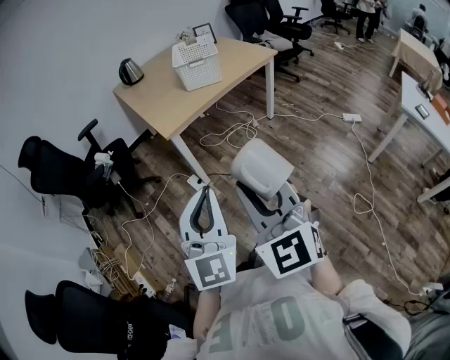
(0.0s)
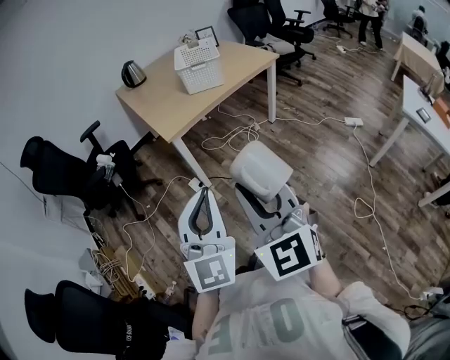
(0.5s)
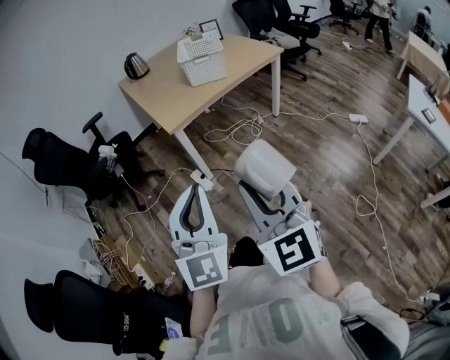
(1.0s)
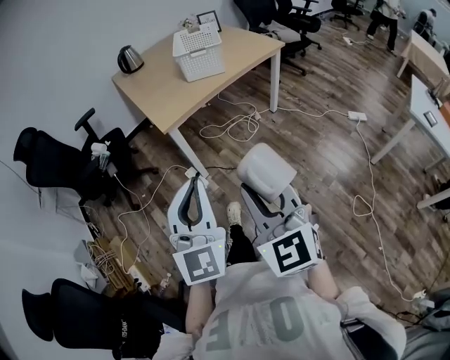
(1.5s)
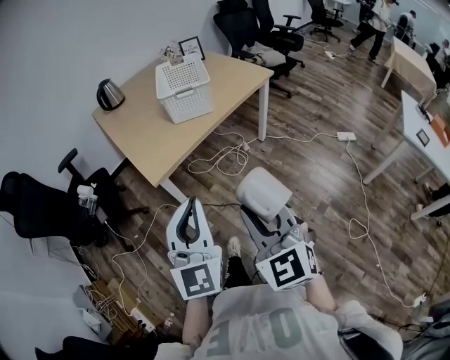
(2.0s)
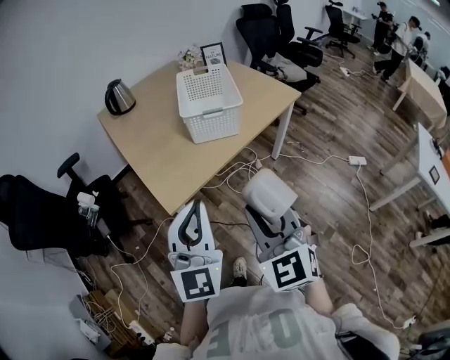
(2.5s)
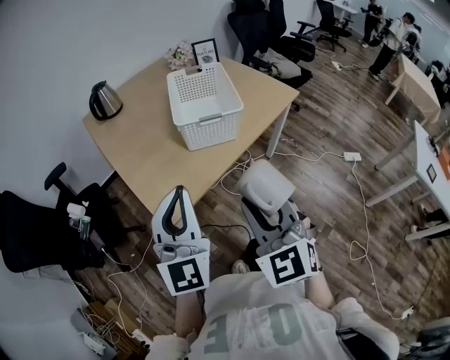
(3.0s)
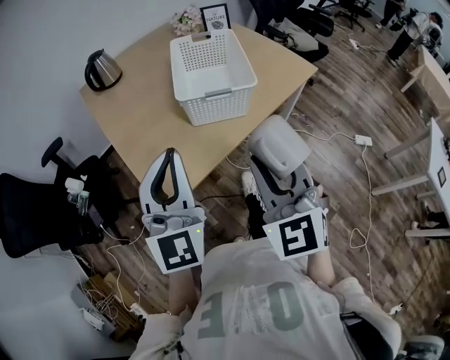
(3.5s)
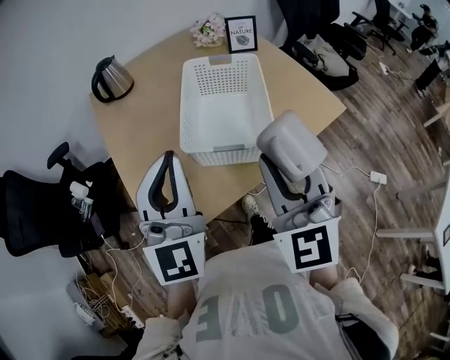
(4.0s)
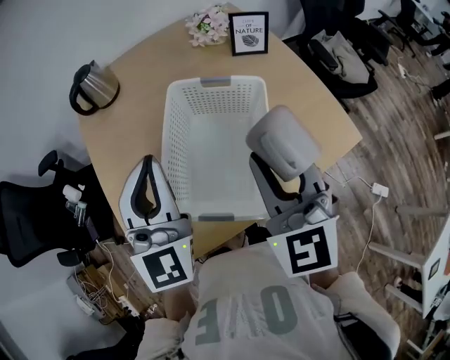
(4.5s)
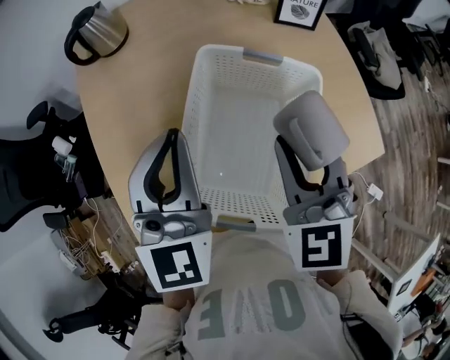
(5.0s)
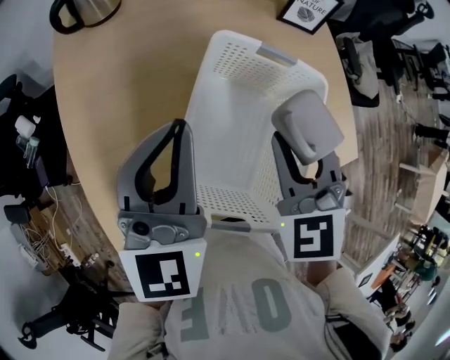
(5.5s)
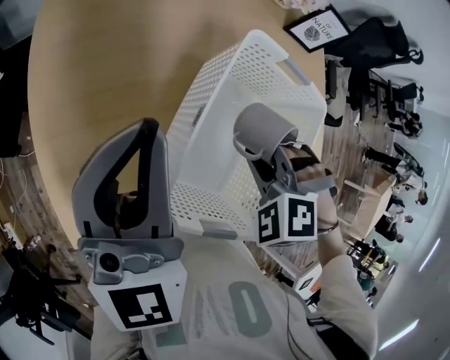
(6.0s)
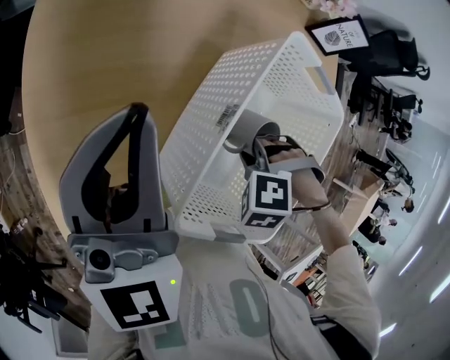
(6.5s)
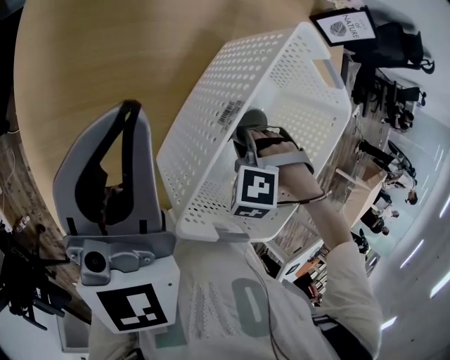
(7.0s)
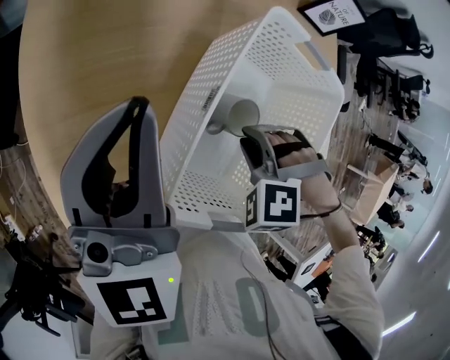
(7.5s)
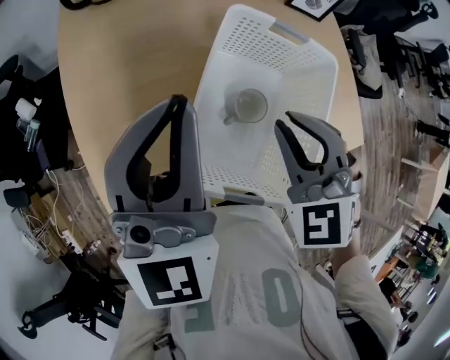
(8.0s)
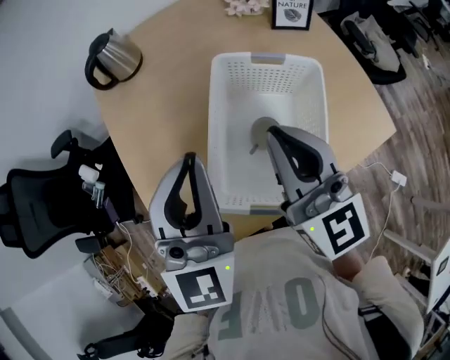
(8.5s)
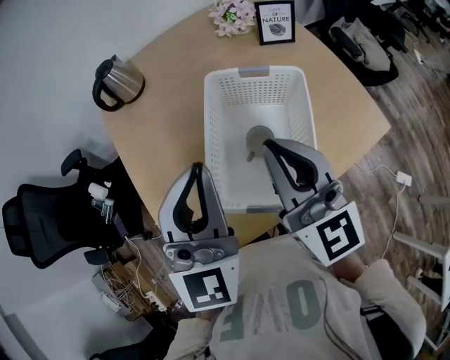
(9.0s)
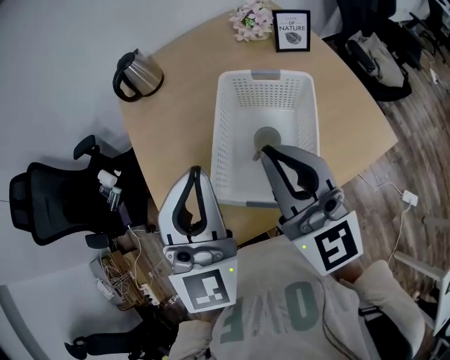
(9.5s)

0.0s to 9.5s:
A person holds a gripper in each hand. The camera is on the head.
0.0s to 2.0s: Both grippers travel together forward, some 20 cm.
2.0s to 4.0s: The pair of grippers is taken forward, some 50 cm.
4.0s to 5.5s: Both grippers travel together forward, roughly 30 cm. The right gripper points its fingers roughly 30 degrees further downward; the left gripper rotates approximately 20 degrees.
5.5s to 7.5s: The right gripper heads downward, covering some 15 cm, and rolls counterclockwise, seen from behind, by approximately 50 degrees; the left gripper shifts by approximately 10 cm.
7.5s to 9.5s: The left gripper heads upward, backward and to the right, covering approximately 20 cm, and swivels approximately 20 degrees; the right gripper heads upward, covering about 30 cm, and tilts its fingers approximately 80 degrees upward.

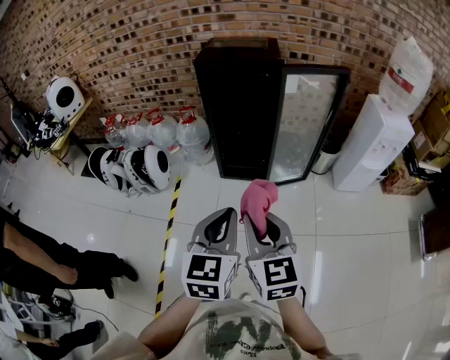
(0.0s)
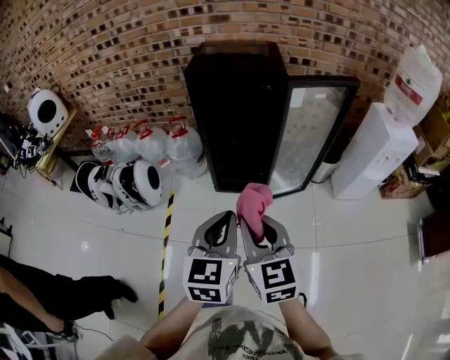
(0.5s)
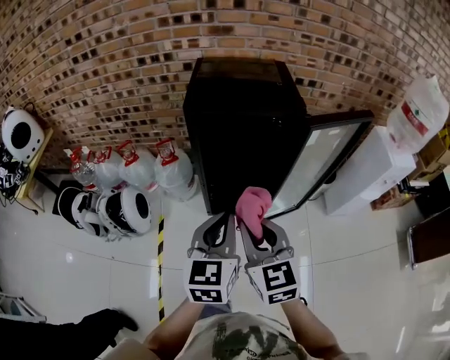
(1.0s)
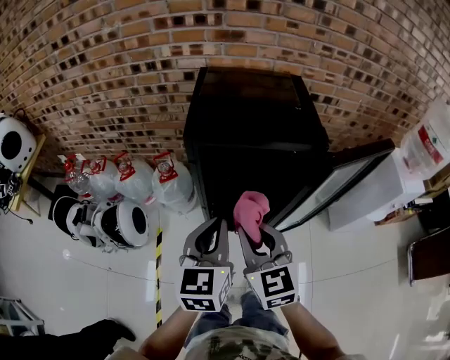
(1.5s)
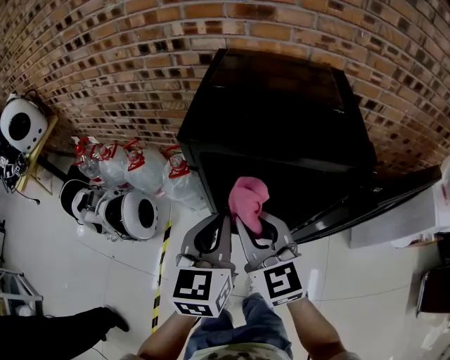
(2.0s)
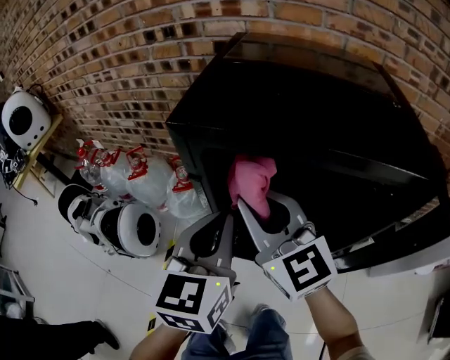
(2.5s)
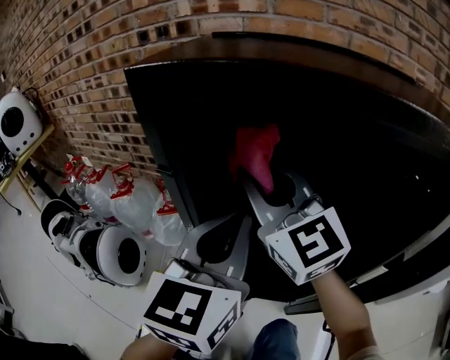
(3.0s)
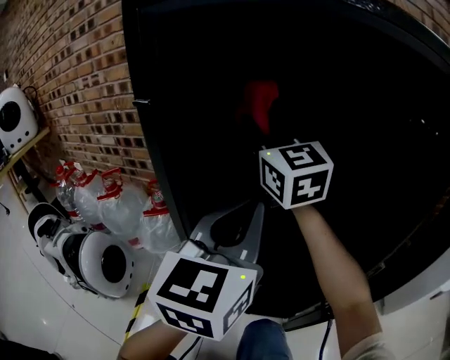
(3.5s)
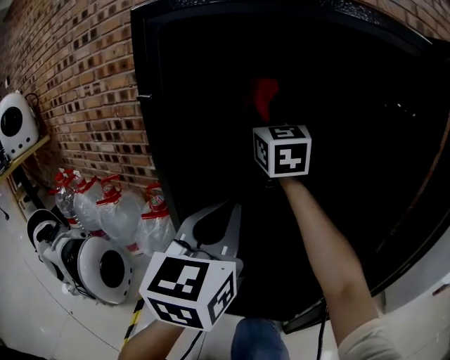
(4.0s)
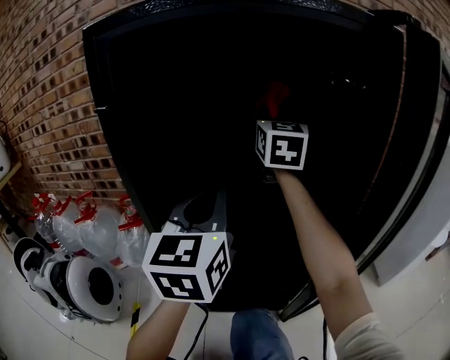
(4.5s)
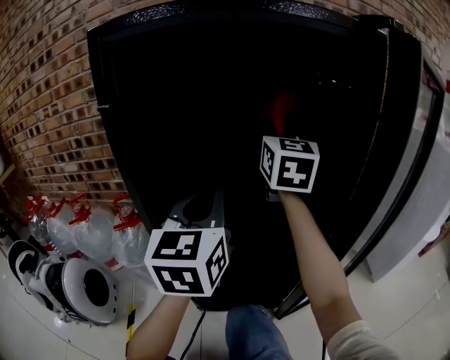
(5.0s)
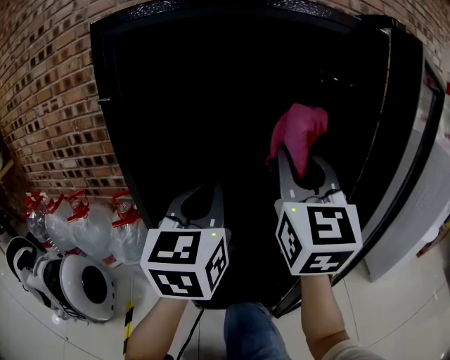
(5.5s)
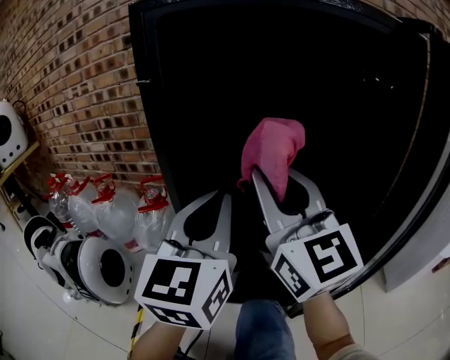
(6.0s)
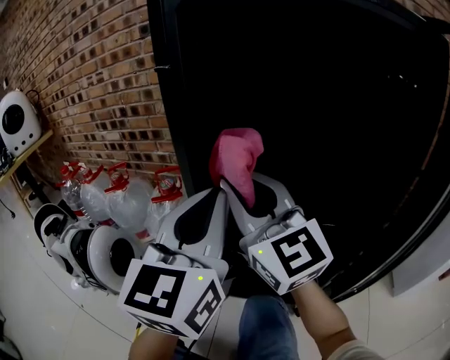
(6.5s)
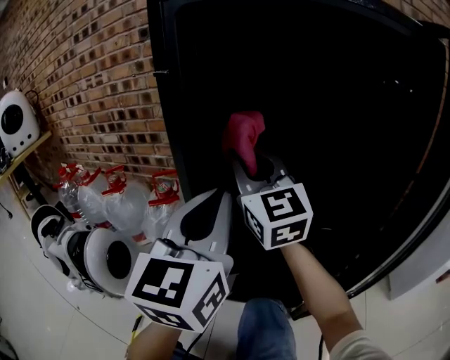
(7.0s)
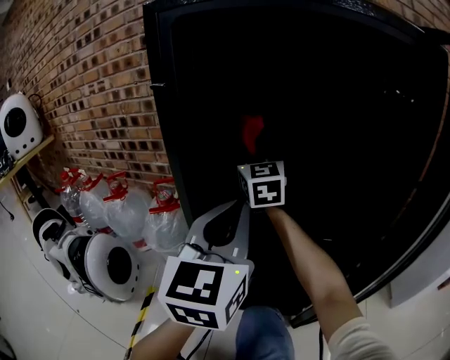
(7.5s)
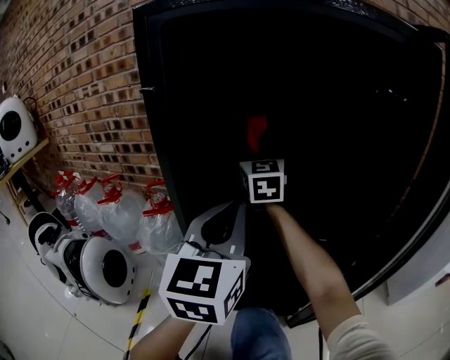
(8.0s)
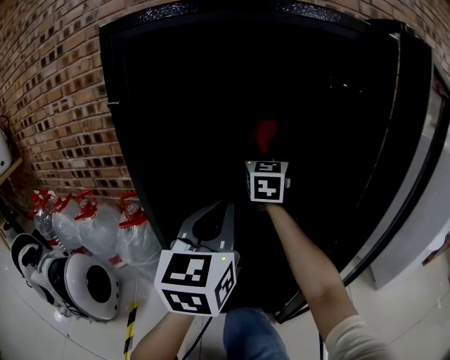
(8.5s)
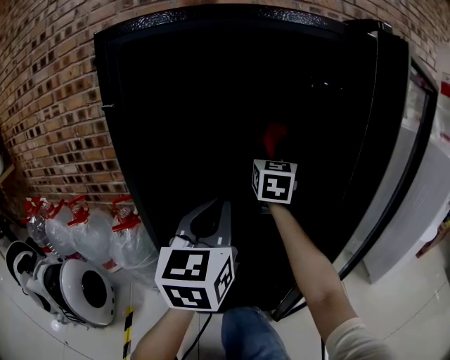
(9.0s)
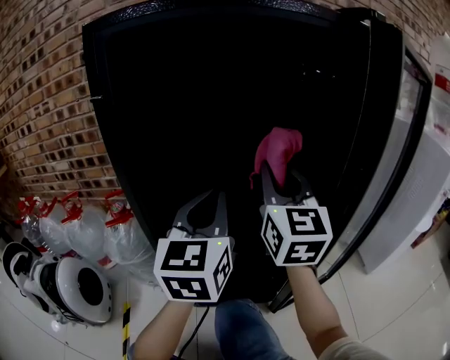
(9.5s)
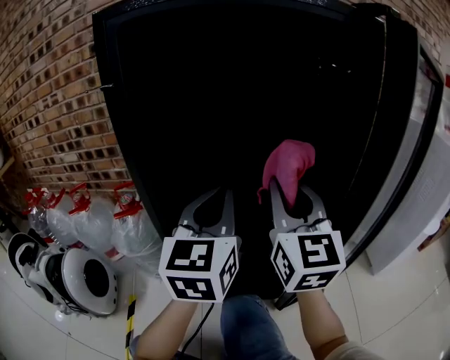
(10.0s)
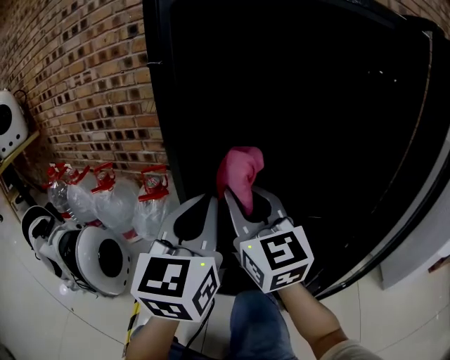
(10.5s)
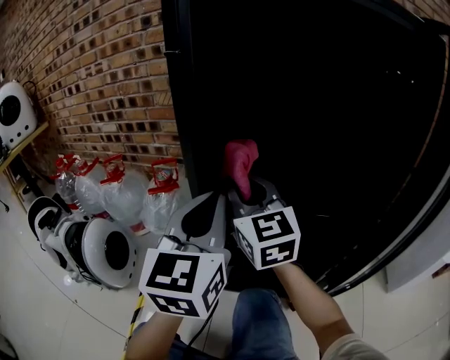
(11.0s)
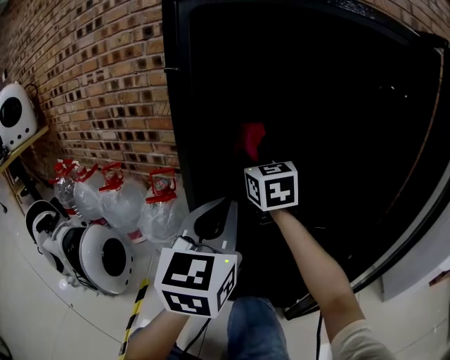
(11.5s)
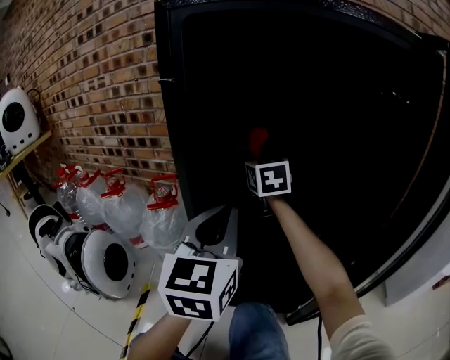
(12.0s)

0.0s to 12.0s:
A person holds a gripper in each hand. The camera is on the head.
0.0s to 2.0s: The two grippers travel together, forward, about 50 cm.
2.0s to 4.0s: The left gripper moves downward and forward, some 20 cm, and turns by roughly 20 degrees. Meanwhile the right gripper moves forward, roughly 30 cm, and changes its angle by approximately 30 degrees.
4.0s to 6.0s: The right gripper moves backward, some 25 cm.
6.0s to 8.0s: The right gripper travels forward by about 25 cm.
8.0s to 10.0s: The right gripper travels backward and to the right by approximately 25 cm.
10.0s to 12.0s: The right gripper heads forward and to the left, covering approximately 25 cm, and swivels about 30 degrees. Meanwhile the left gripper travels to the left by about 5 cm.

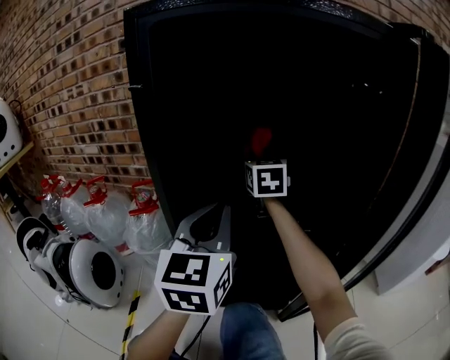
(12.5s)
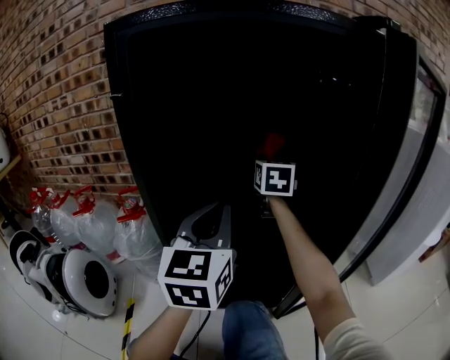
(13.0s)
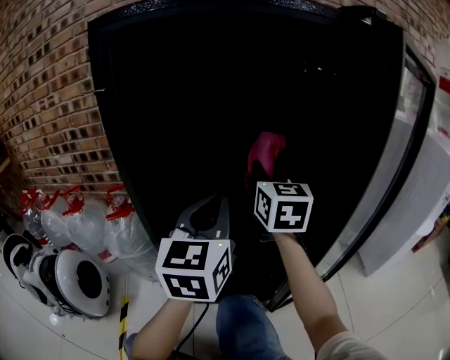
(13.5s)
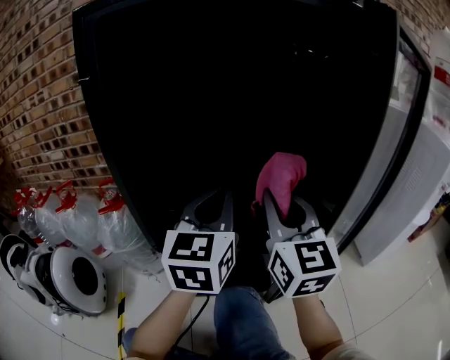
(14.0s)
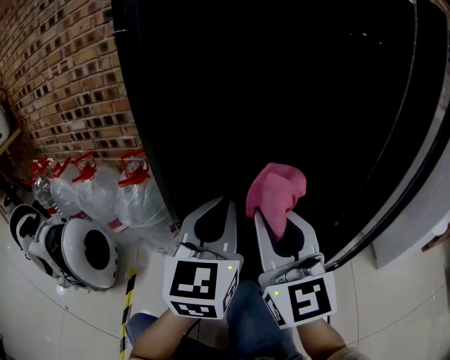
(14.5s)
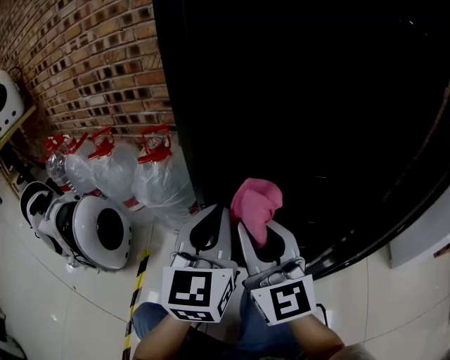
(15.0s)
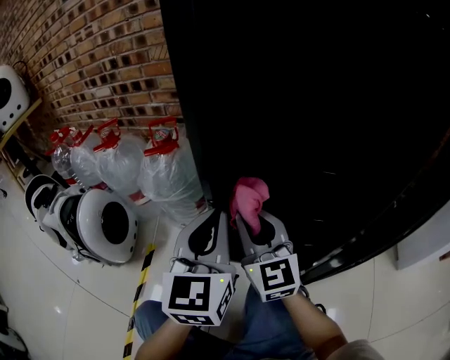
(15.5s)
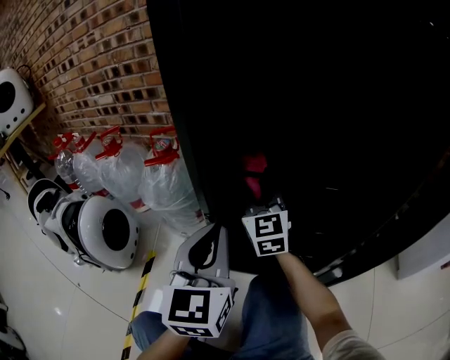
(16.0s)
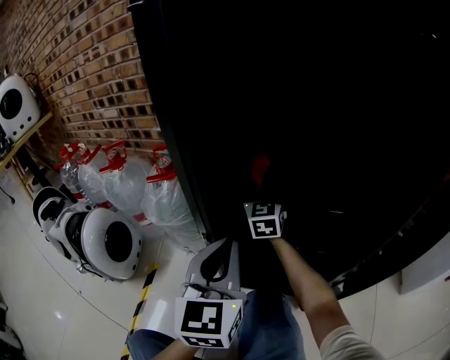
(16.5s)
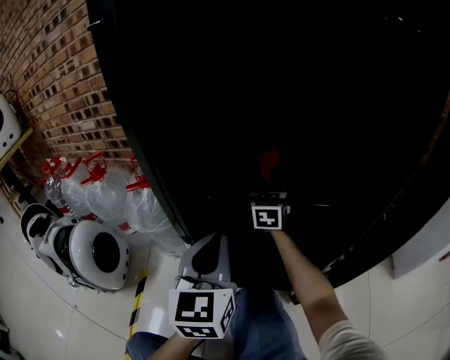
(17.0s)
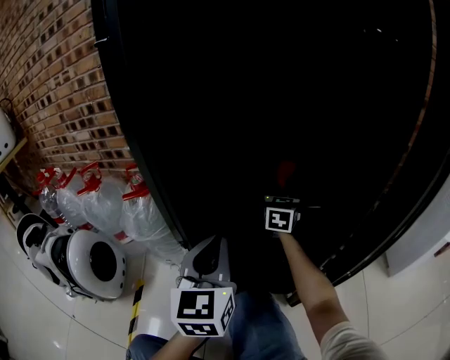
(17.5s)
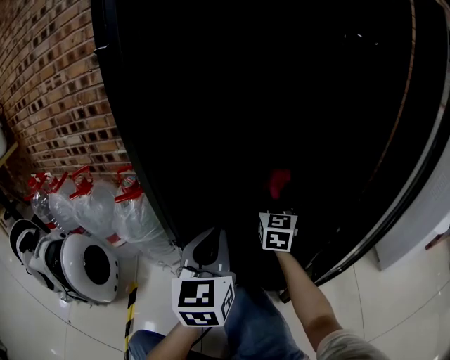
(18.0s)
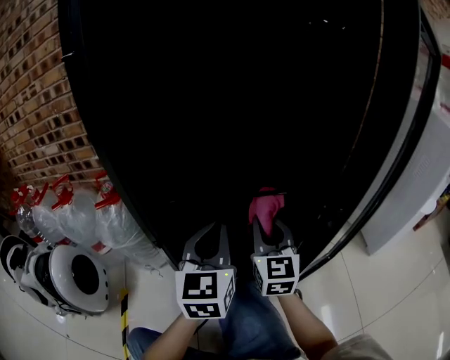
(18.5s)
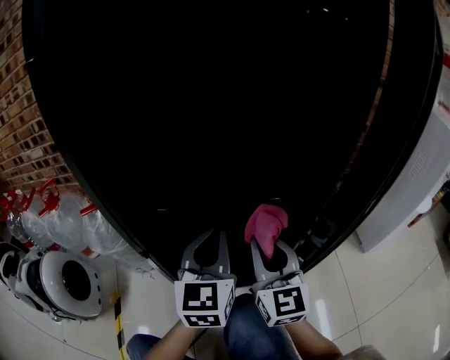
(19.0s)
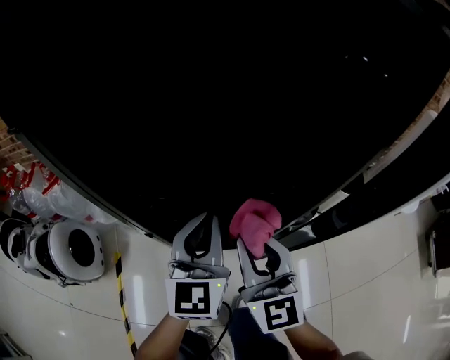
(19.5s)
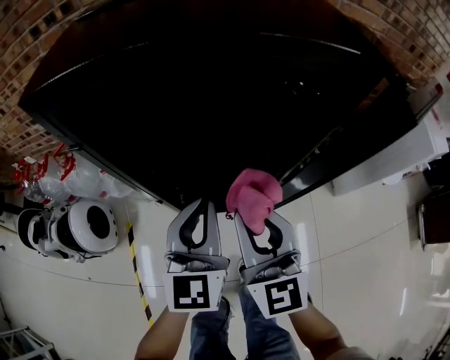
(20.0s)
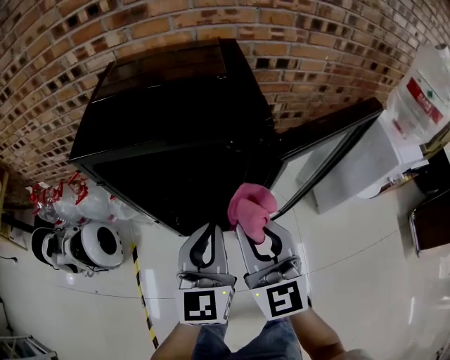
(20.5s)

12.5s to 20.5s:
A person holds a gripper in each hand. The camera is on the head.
12.5s to 14.5s: The right gripper heads backward, covering some 30 cm, and swivels approximately 20 degrees. The left gripper travels to the right and back again, roughly 10 cm each way.
14.5s to 16.5s: The left gripper goes some 10 cm downward and to the left, while the right gripper goes about 35 cm forward and downward.
16.5s to 18.5s: The left gripper is displaced to the right by roughly 10 cm. The right gripper heads to the right and backward, covering some 25 cm.
18.5s to 20.5s: The left gripper shifts about 35 cm upward, while the right gripper goes roughly 50 cm upward and backward.
